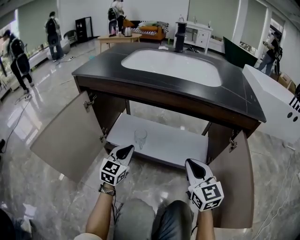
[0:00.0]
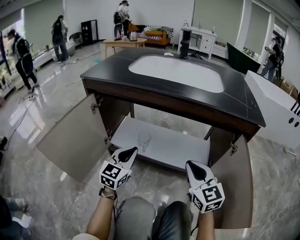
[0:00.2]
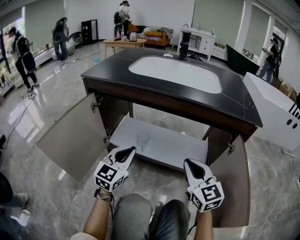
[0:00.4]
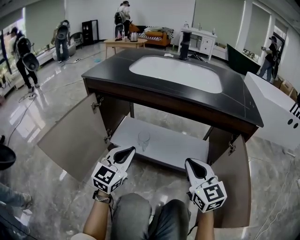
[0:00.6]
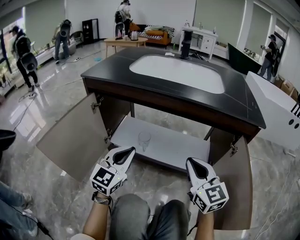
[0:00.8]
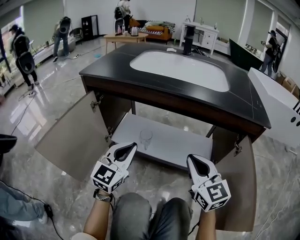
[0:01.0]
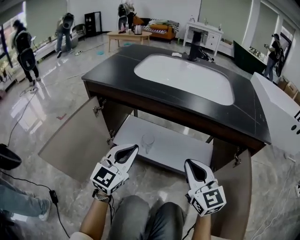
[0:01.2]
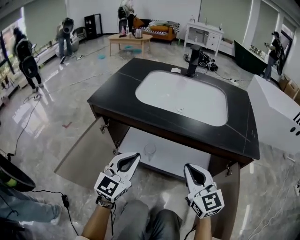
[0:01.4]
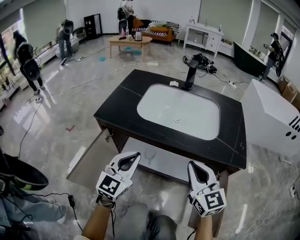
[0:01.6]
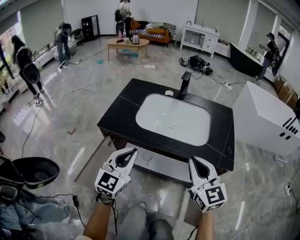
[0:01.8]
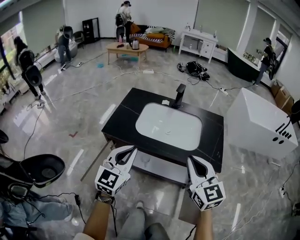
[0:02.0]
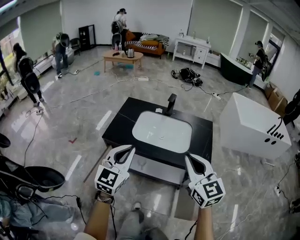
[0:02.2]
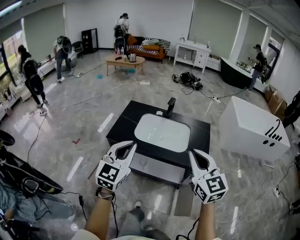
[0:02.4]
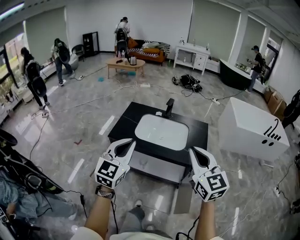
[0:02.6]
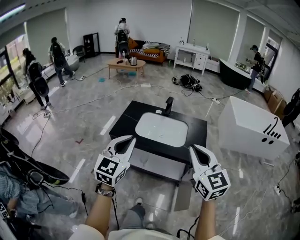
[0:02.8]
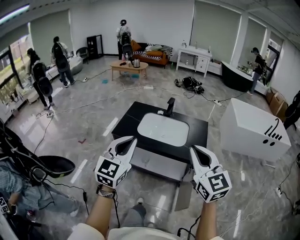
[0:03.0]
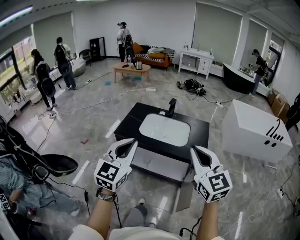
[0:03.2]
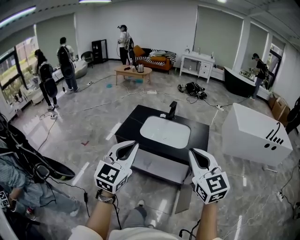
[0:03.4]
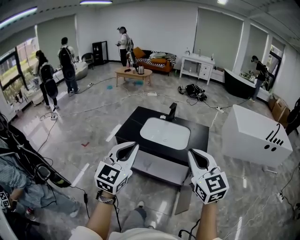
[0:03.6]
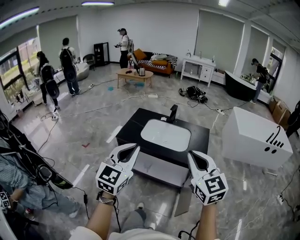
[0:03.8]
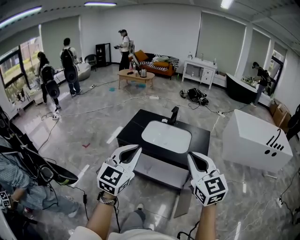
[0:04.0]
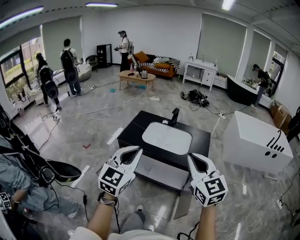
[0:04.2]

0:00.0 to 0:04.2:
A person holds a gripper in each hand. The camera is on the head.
0:00.0 to 0:01.4: Both grippers travel together upward, roughly 20 cm.
0:01.4 to 0:02.8: The grippers both shift upward by about 50 cm.
0:02.8 to 0:04.2: Both grippers travel together backward, about 10 cm.

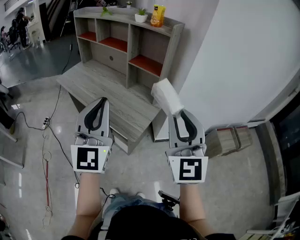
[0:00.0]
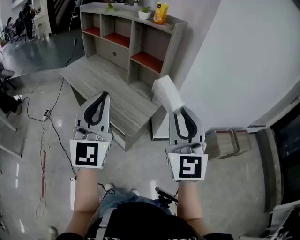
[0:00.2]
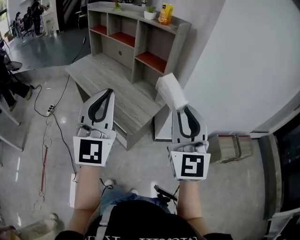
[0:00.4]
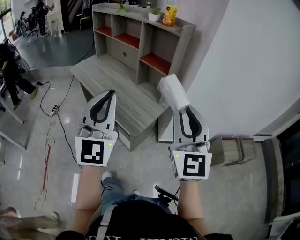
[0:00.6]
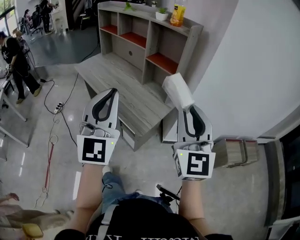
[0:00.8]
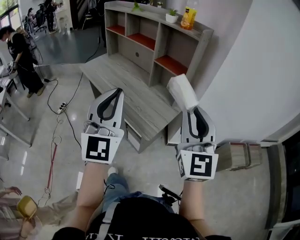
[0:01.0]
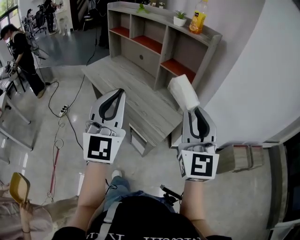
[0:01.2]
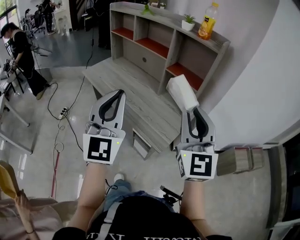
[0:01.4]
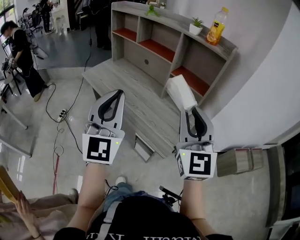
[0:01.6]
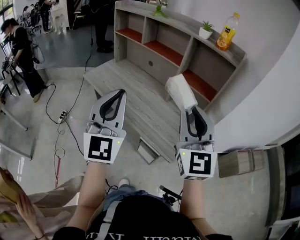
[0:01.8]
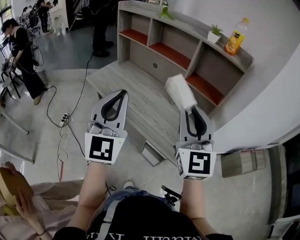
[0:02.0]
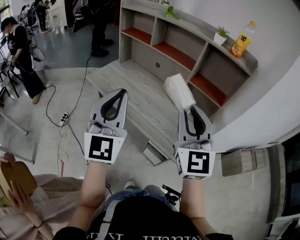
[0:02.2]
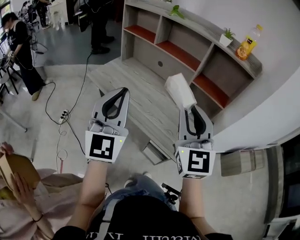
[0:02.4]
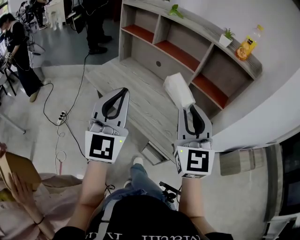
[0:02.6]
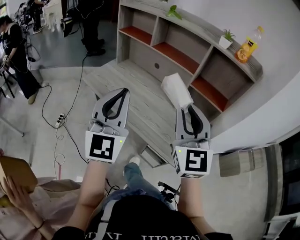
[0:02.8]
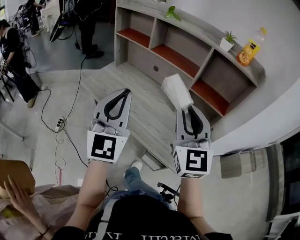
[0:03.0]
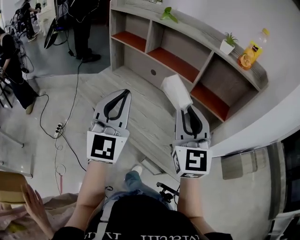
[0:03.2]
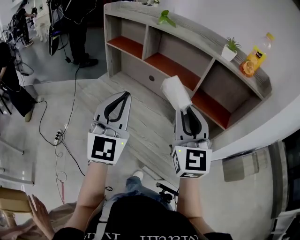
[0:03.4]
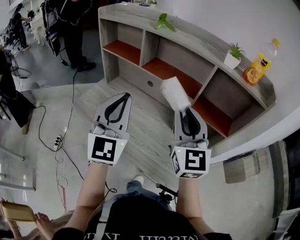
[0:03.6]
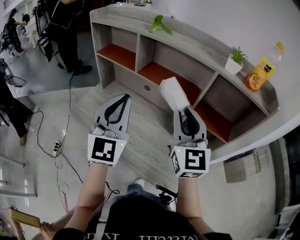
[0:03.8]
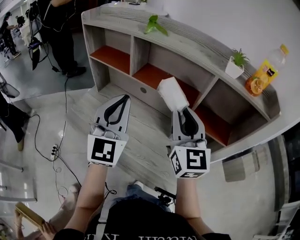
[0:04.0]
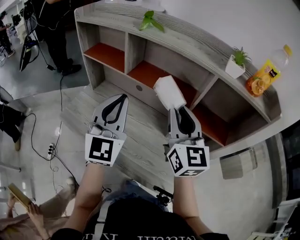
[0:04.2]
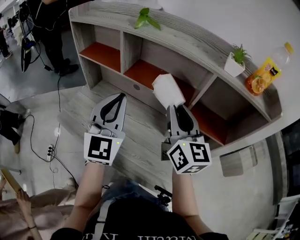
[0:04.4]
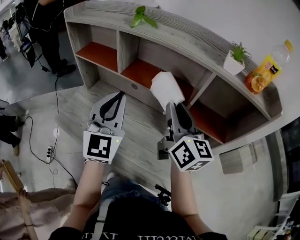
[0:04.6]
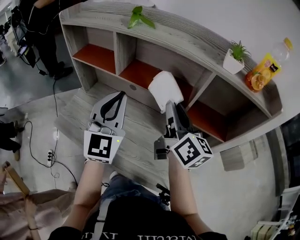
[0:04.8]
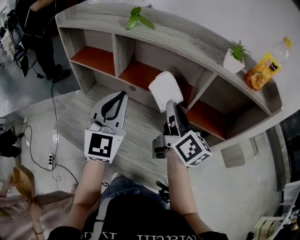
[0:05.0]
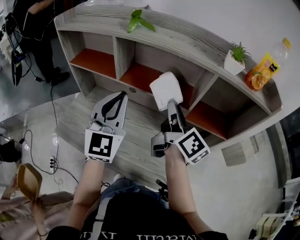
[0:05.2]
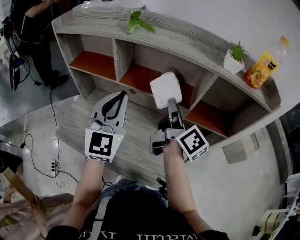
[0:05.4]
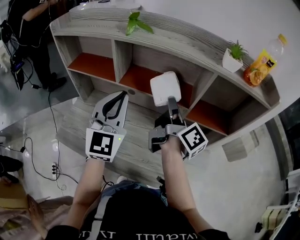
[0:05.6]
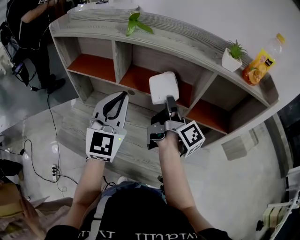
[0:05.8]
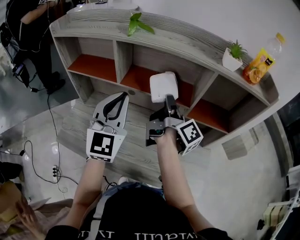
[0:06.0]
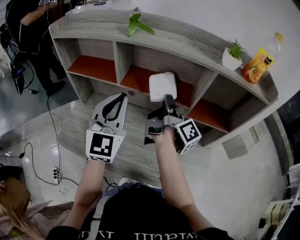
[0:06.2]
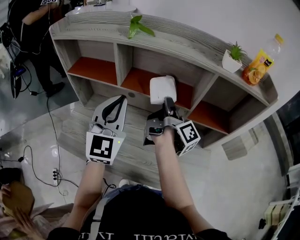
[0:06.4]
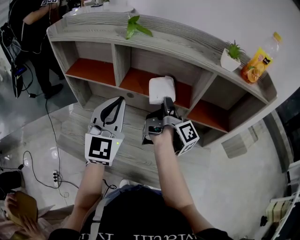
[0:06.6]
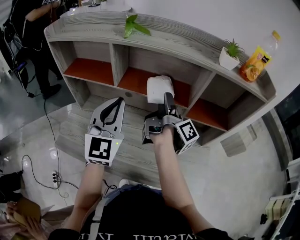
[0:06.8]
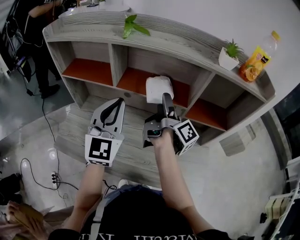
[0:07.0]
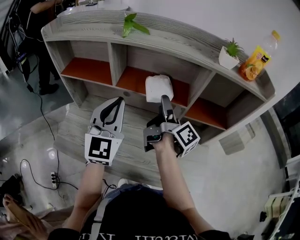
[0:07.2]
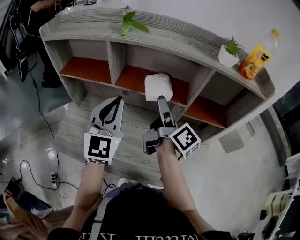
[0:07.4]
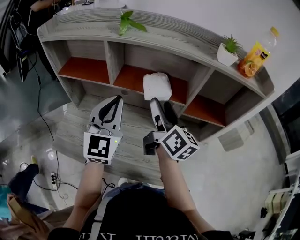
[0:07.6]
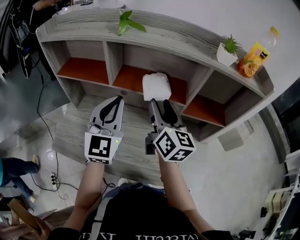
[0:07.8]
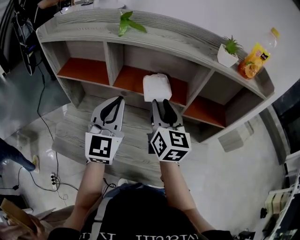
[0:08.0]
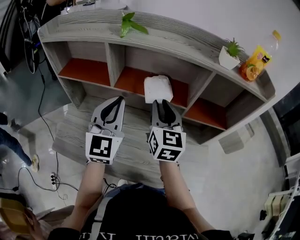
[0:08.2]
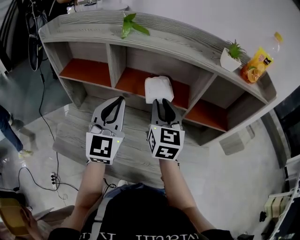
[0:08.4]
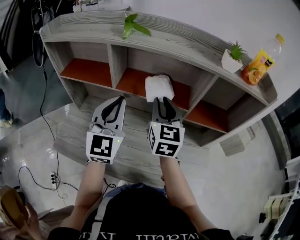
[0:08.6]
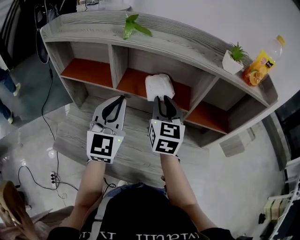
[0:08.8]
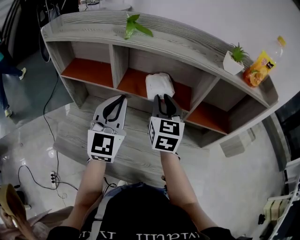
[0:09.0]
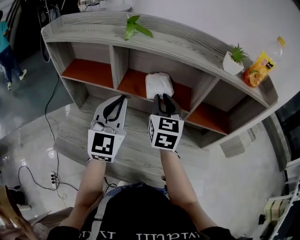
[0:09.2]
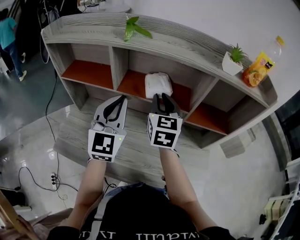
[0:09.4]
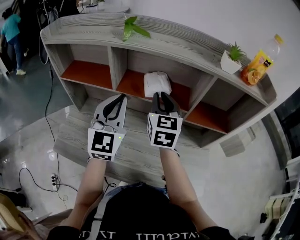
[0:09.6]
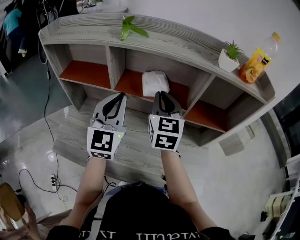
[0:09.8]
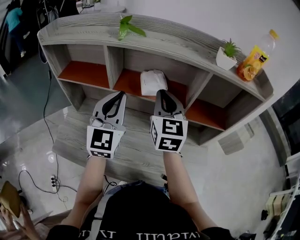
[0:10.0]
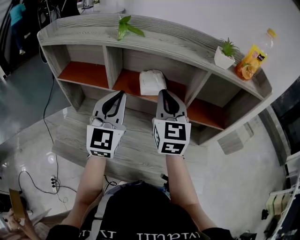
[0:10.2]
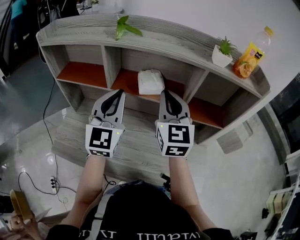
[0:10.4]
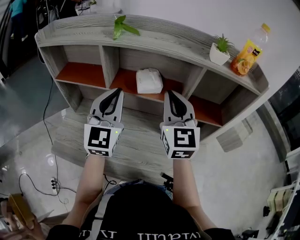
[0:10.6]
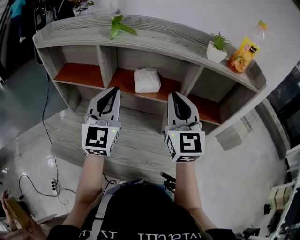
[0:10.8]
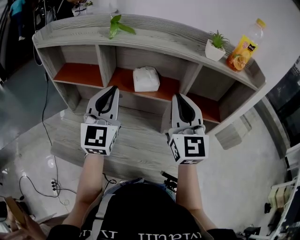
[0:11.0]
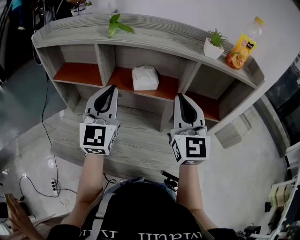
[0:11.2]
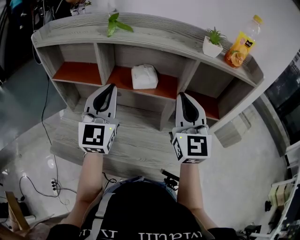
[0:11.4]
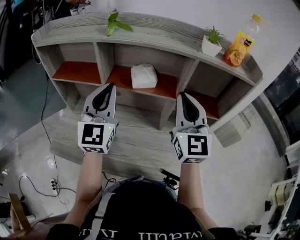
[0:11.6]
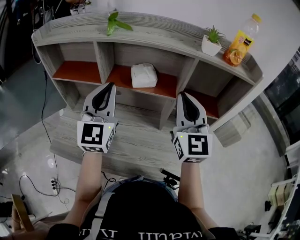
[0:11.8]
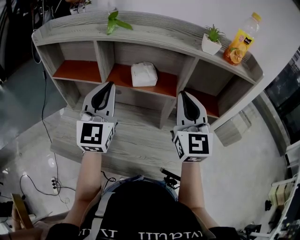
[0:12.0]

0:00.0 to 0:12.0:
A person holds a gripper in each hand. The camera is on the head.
0:00.0 to 0:01.6: The grippers both shift to the left and forward by approximately 20 cm.
0:01.6 to 0:03.0: Both grippers move forward and to the left, about 20 cm.
0:03.0 to 0:04.4: The grippers both shift forward by approximately 25 cm. The right gripper swivels roughly 30 degrees.
0:04.4 to 0:06.0: The right gripper heads forward and downward, covering some 10 cm, and rolls clockwise, seen from behind, by roughly 70 degrees.
0:06.0 to 0:07.6: The right gripper rolls counterclockwise, seen from behind, by approximately 50 degrees, and opens its fingers.
0:07.6 to 0:09.0: The right gripper moves approximately 5 cm, twists roughly 40 degrees counterclockwise, seen from behind, and closes.
0:09.0 to 0:10.4: The right gripper moves upward, approximately 5 cm.
0:10.4 to 0:12.0: The right gripper shifts about 10 cm to the right and backward.

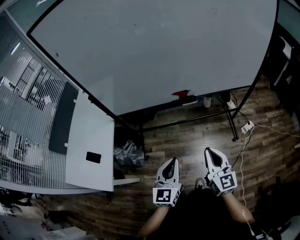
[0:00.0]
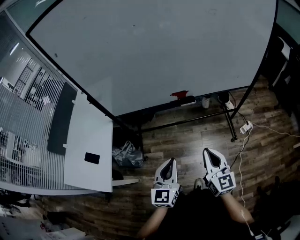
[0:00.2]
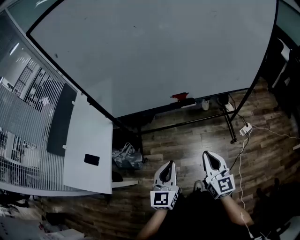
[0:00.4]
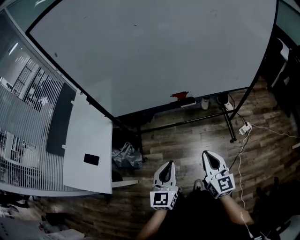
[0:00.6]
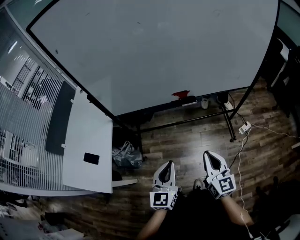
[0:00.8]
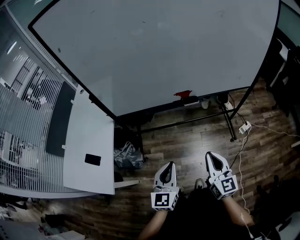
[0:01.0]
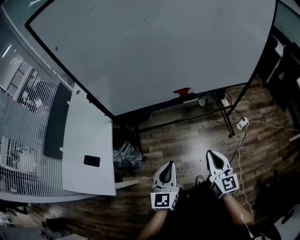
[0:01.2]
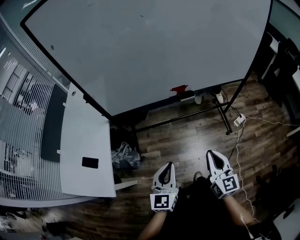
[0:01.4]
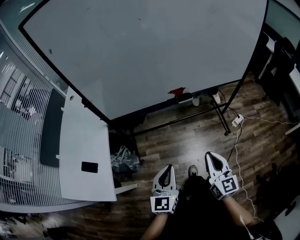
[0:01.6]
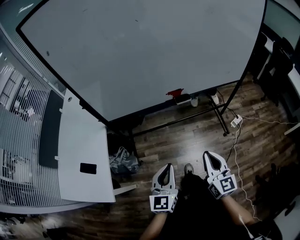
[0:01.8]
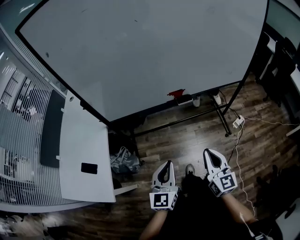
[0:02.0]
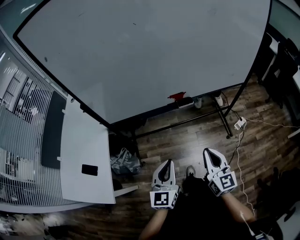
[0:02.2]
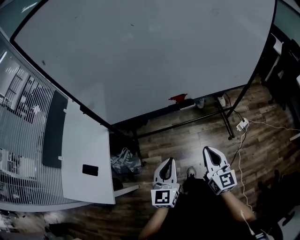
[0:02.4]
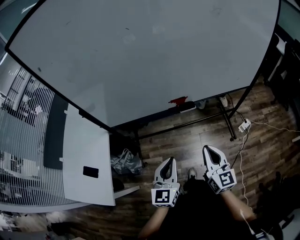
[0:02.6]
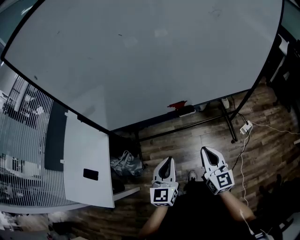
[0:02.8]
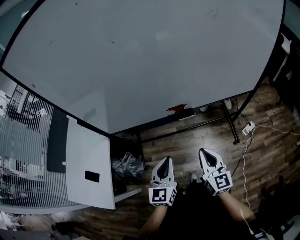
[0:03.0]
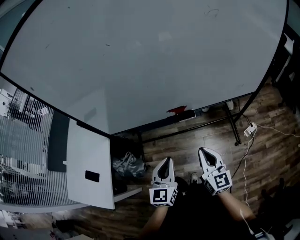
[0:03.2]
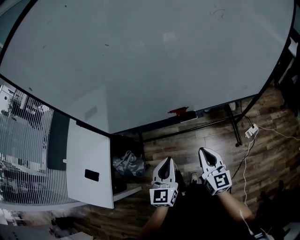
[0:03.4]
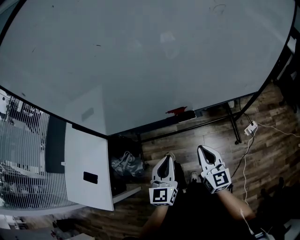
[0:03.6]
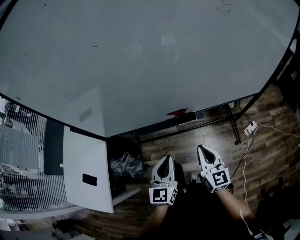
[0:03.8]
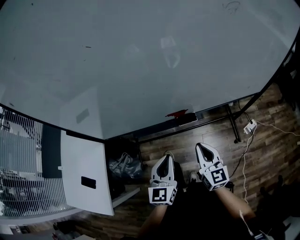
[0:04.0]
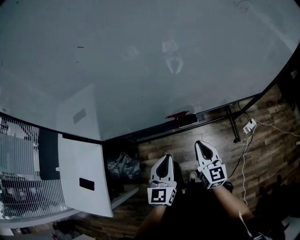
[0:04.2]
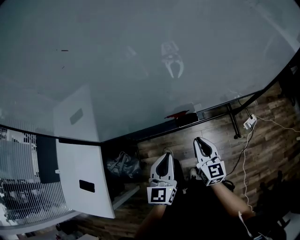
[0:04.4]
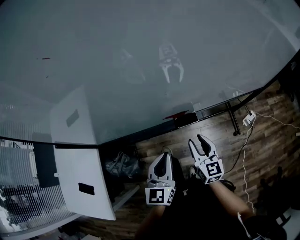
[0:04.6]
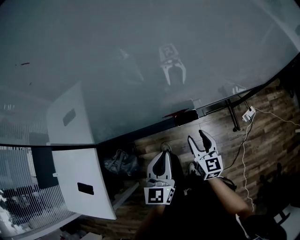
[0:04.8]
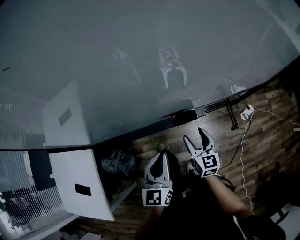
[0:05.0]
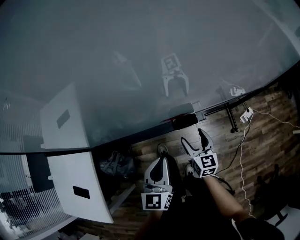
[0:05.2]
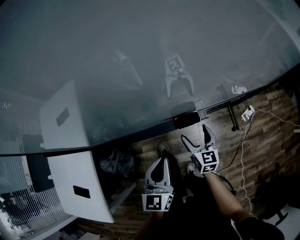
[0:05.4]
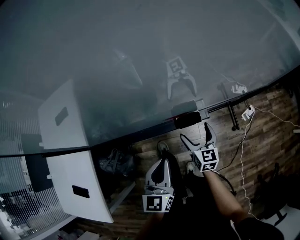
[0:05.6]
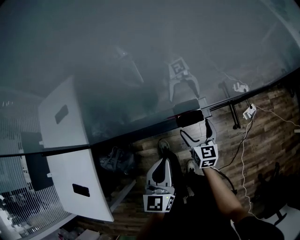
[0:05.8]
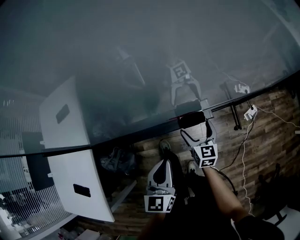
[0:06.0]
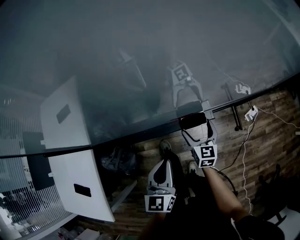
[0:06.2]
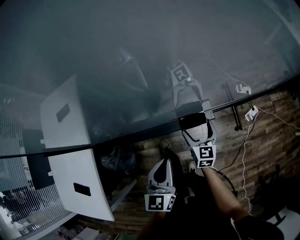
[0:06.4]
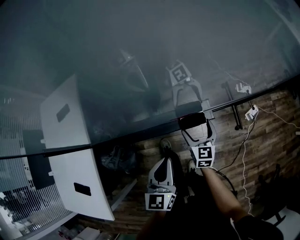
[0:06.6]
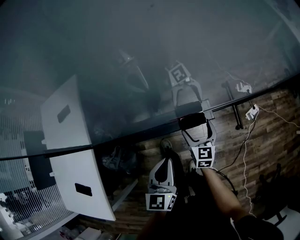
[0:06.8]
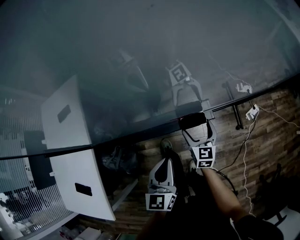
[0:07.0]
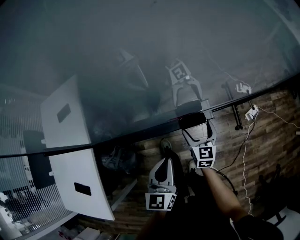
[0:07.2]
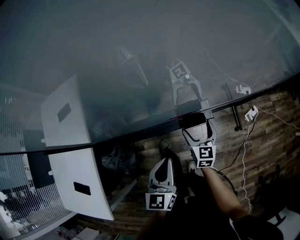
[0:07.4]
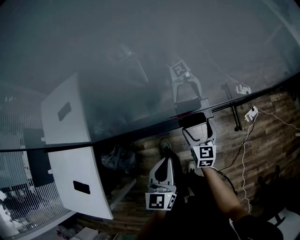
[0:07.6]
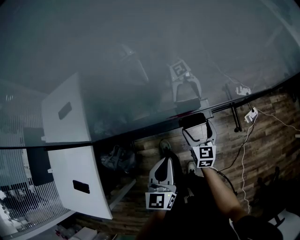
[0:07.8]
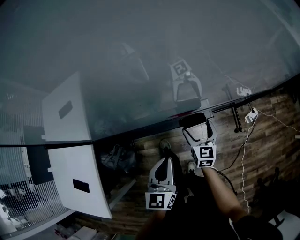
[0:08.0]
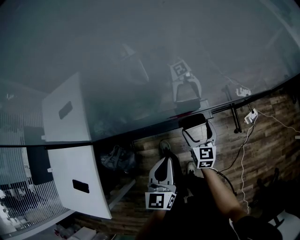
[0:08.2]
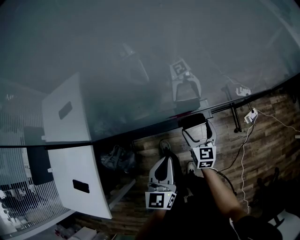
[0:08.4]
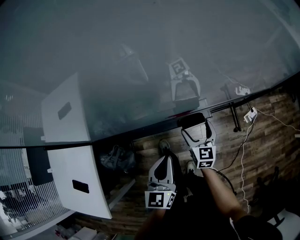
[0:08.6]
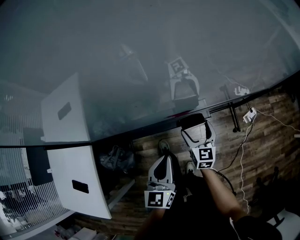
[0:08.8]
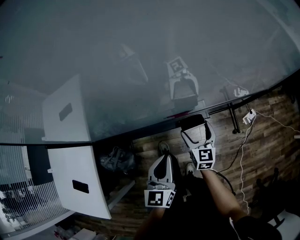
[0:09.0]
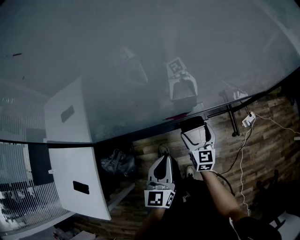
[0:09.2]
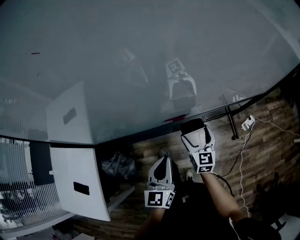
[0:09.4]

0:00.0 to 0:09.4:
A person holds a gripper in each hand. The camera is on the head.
0:00.0 to 0:01.6: The right gripper shifts by some 5 cm; the left gripper shifts approximately 5 cm to the left.
0:01.6 to 0:03.2: The left gripper heads forward and to the right, covering some 20 cm; the right gripper is displaced forward by roughly 15 cm.
0:03.2 to 0:04.8: Both grippers travel together forward and downward, approximately 15 cm. The right gripper opens its fingers.
0:04.8 to 0:06.2: The right gripper is displaced downward and forward by some 10 cm, and opens up.
0:06.2 to 0:07.8: The grippers stay close to where they were, moving slightly.
0:07.8 to 0:09.4: The right gripper heads upward, covering approximately 5 cm.
